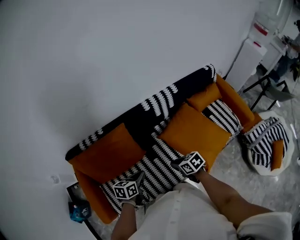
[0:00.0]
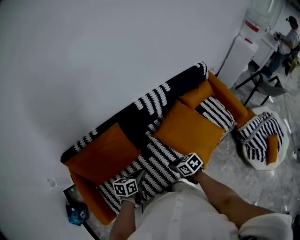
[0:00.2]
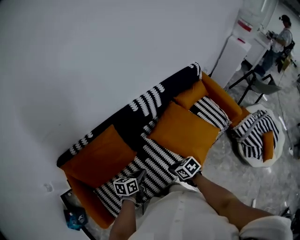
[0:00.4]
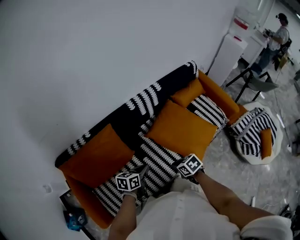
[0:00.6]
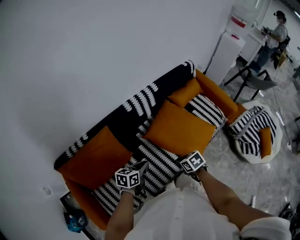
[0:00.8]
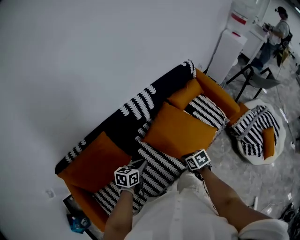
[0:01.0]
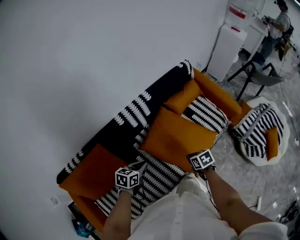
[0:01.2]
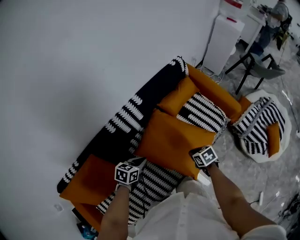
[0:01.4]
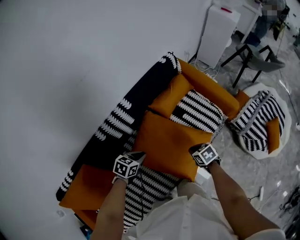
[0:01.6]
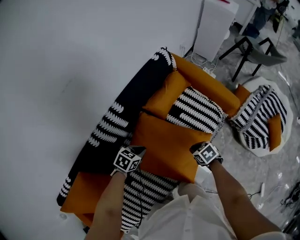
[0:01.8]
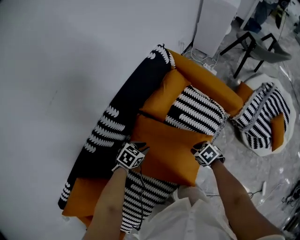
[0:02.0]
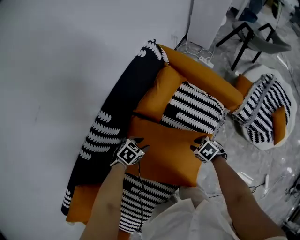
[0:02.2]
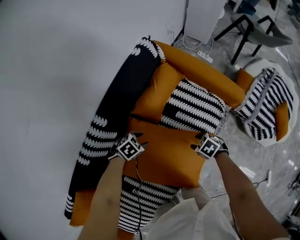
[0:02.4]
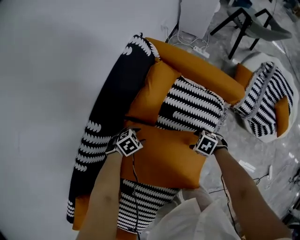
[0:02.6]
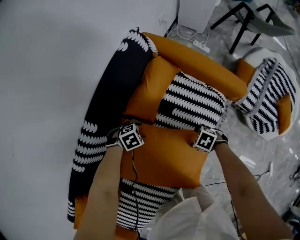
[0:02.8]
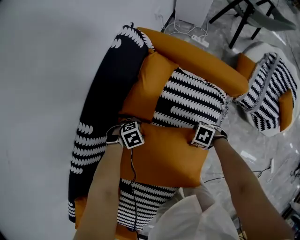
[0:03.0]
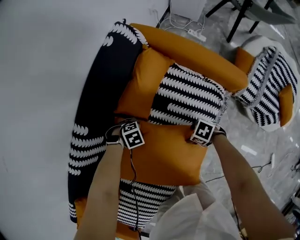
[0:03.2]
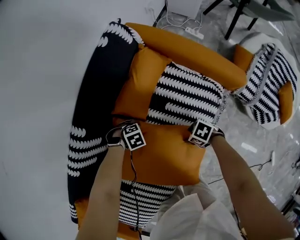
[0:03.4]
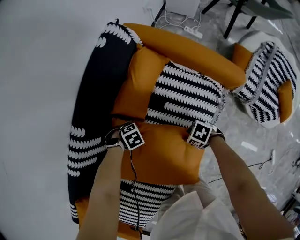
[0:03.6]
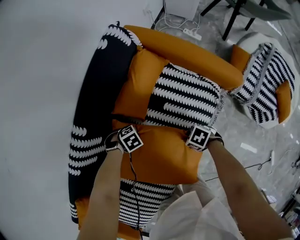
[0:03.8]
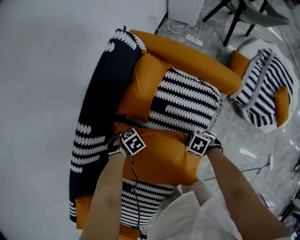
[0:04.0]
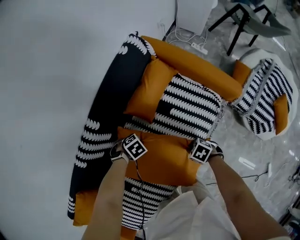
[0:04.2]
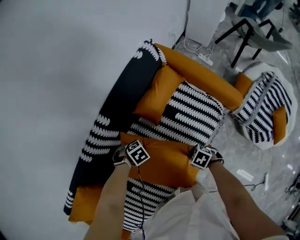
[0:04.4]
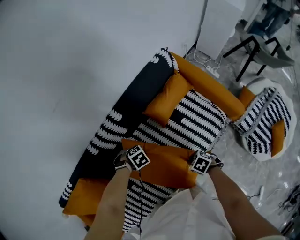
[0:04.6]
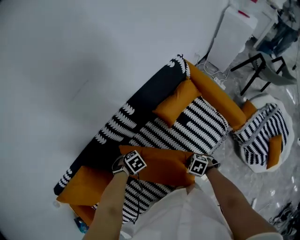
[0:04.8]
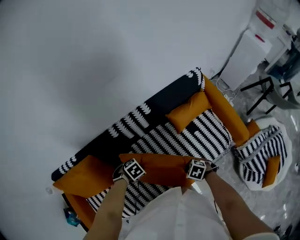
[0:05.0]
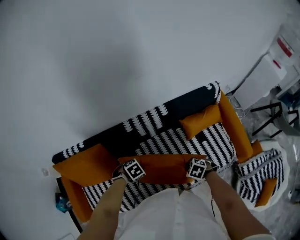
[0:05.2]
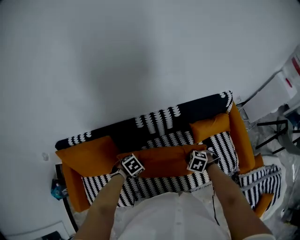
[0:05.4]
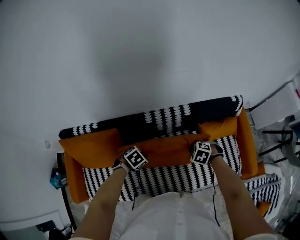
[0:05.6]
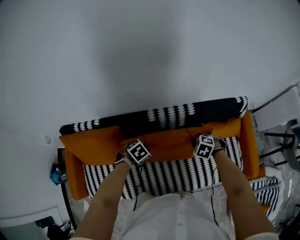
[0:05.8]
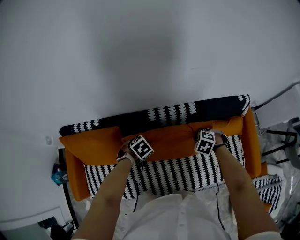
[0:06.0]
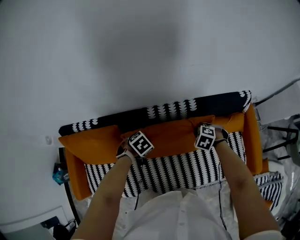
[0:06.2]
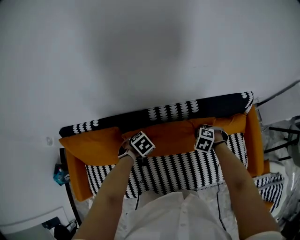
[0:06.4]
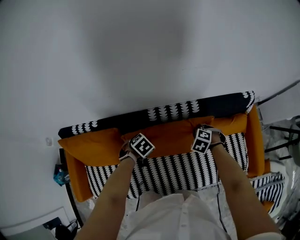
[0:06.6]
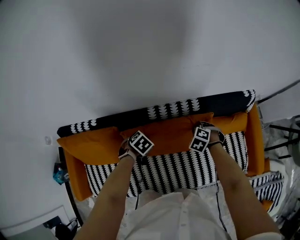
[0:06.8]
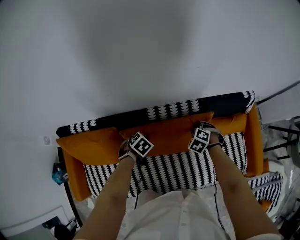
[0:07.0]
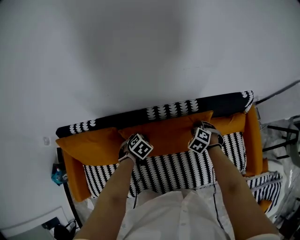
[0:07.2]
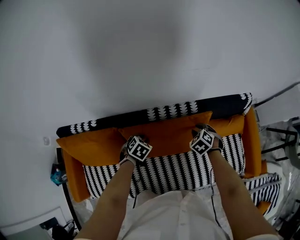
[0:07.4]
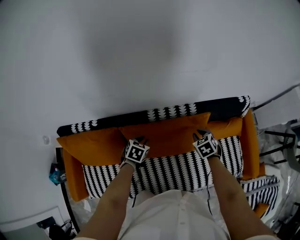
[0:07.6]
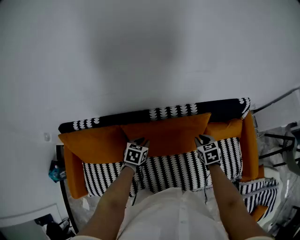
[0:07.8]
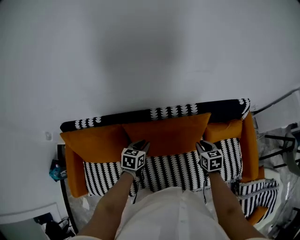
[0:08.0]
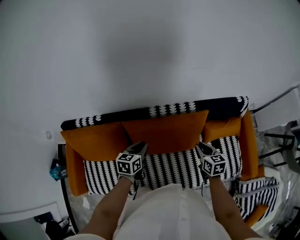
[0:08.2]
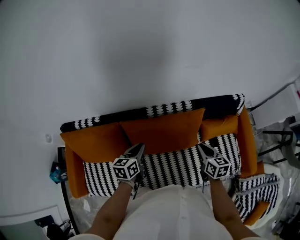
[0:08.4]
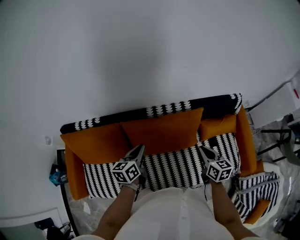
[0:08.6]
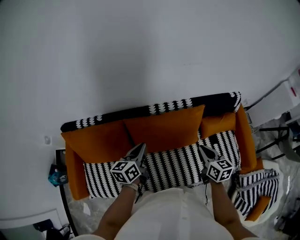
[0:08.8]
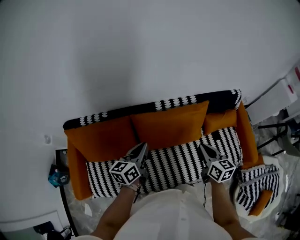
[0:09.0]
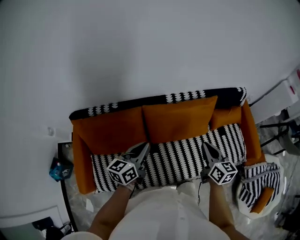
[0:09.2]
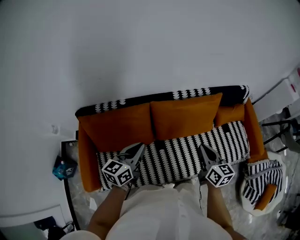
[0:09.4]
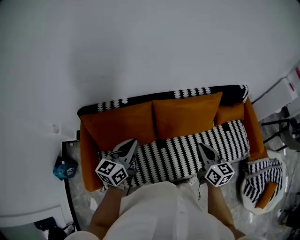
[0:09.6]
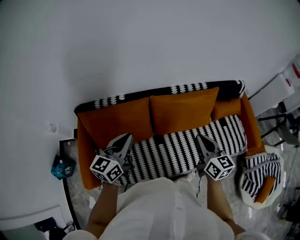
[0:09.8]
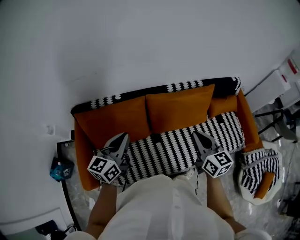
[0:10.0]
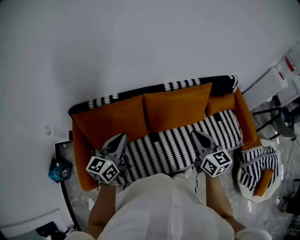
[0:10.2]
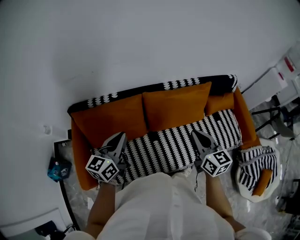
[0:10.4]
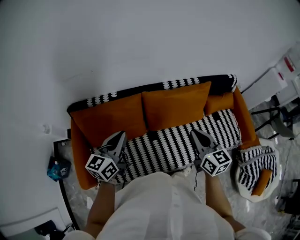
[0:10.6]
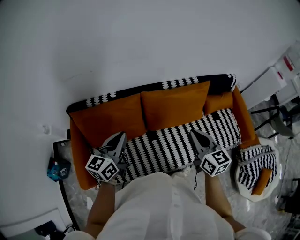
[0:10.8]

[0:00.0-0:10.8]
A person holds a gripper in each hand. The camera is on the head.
0:00.0 to 0:01.6: The right gripper shifts by approximately 35 cm, and changes its angle by some 30 degrees. Meanwhile the left gripper ends up roughly 35 cm from where it was, and changes its angle by approximately 50 degrees.
0:01.6 to 0:03.0: Both grippers travel together downward, roughly 20 cm. The right gripper swivels some 30 degrees, and opens up. Meanwhile the left gripper changes its angle by approximately 70 degrees, and opens its fingers.
0:03.0 to 0:04.6: The right gripper heads upward, covering roughly 15 cm, and closes up; the left gripper changes place by about 20 cm, changes its angle by about 30 degrees, and closes up.
0:04.6 to 0:06.2: The left gripper changes place by approximately 25 cm, and twists roughly 40 degrees counterclockwise, seen from behind, while the right gripper ends up about 35 cm from where it was, and rotates around the line of its fingers by roughly 60 degrees, counterclockwise from behind.
0:06.2 to 0:07.8: The left gripper rotates about 40 degrees; the right gripper rotates around the line of its fingers by about 50 degrees, clockwise from behind.
0:07.8 to 0:09.2: The right gripper is displaced backward, upward and to the left by roughly 30 cm, and tilts its fingers about 30 degrees upward. The left gripper moves upward, backward and to the left, roughly 30 cm, angles its fingers upward, by about 40 degrees, and closes up.
0:09.2 to 0:10.8: The grippers both shift to the left, backward and upward by some 15 cm.

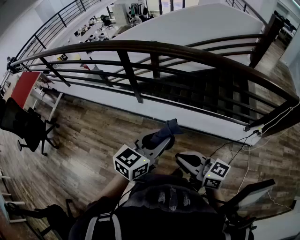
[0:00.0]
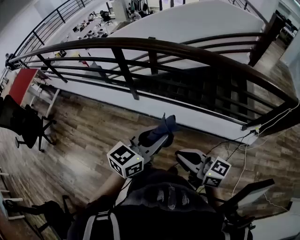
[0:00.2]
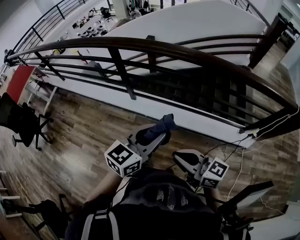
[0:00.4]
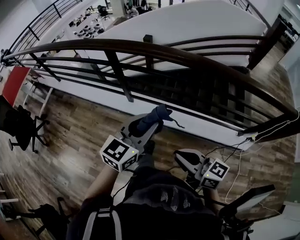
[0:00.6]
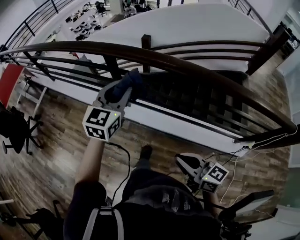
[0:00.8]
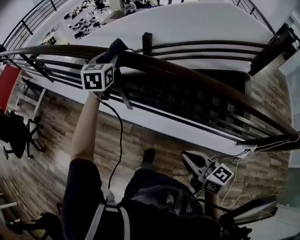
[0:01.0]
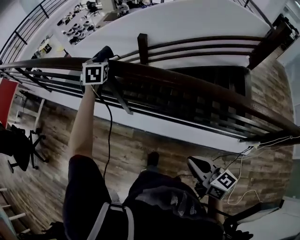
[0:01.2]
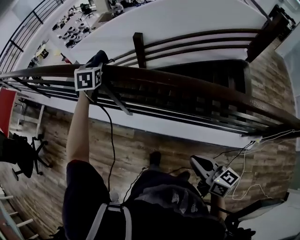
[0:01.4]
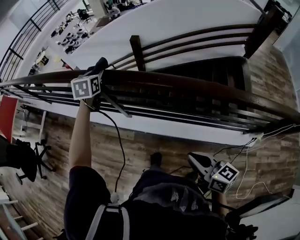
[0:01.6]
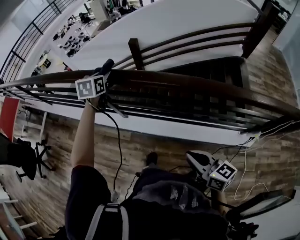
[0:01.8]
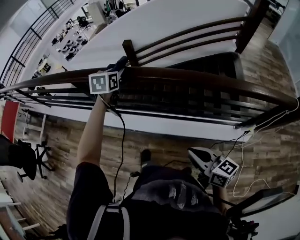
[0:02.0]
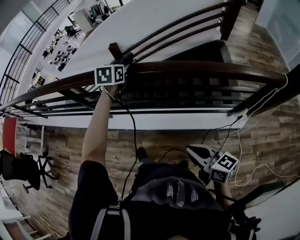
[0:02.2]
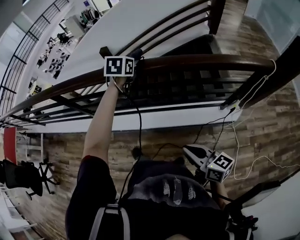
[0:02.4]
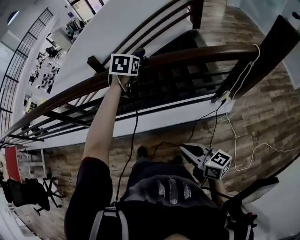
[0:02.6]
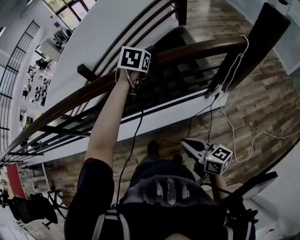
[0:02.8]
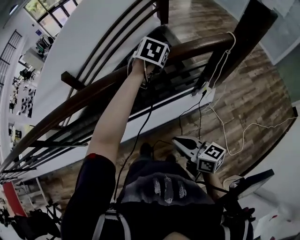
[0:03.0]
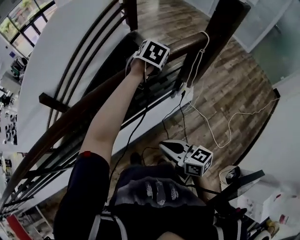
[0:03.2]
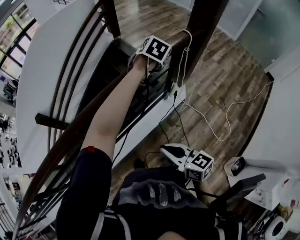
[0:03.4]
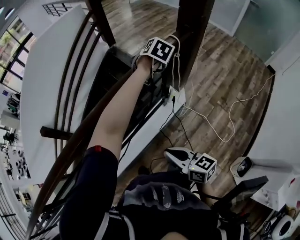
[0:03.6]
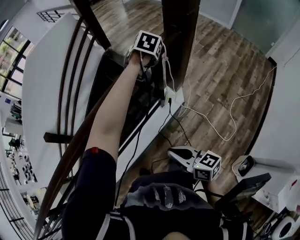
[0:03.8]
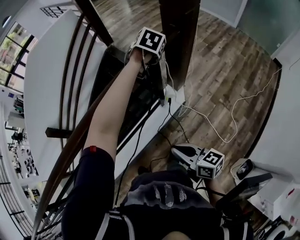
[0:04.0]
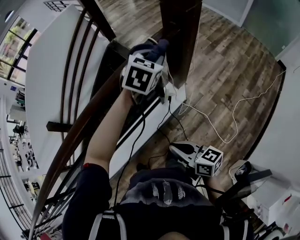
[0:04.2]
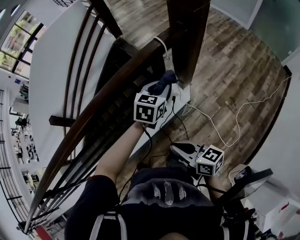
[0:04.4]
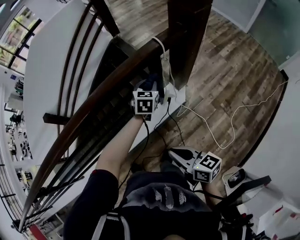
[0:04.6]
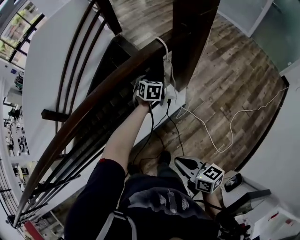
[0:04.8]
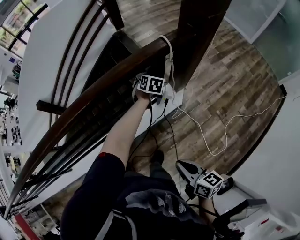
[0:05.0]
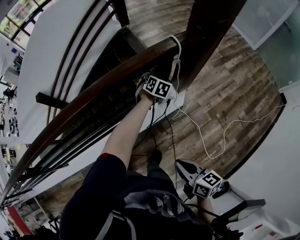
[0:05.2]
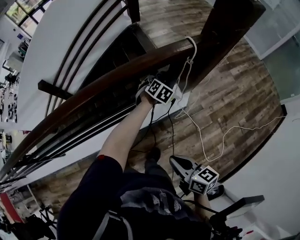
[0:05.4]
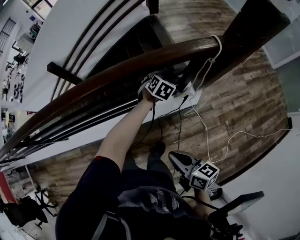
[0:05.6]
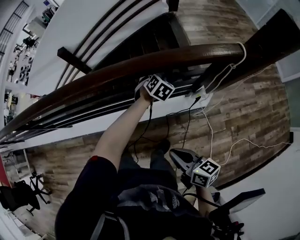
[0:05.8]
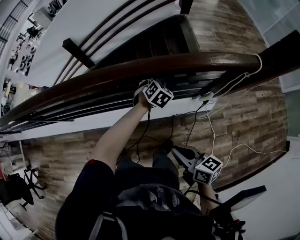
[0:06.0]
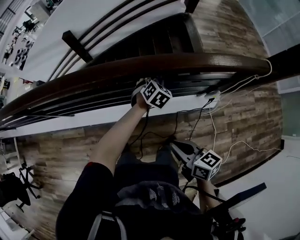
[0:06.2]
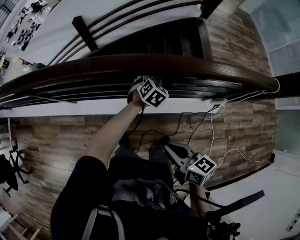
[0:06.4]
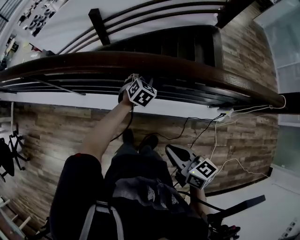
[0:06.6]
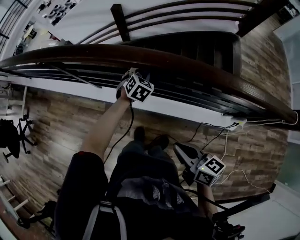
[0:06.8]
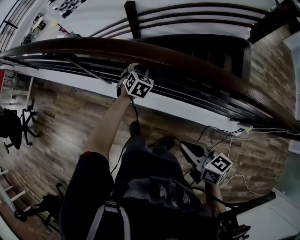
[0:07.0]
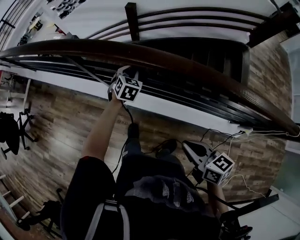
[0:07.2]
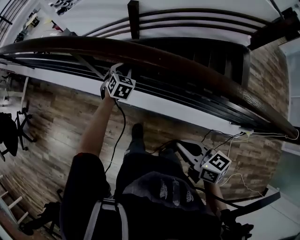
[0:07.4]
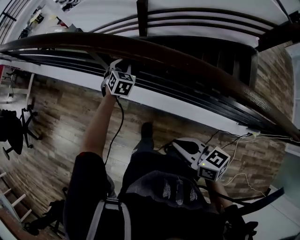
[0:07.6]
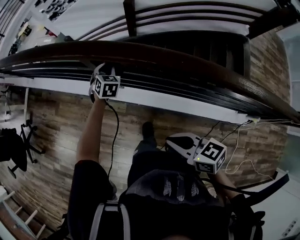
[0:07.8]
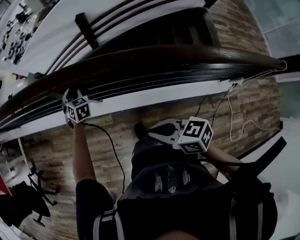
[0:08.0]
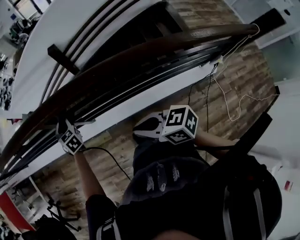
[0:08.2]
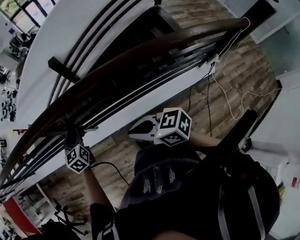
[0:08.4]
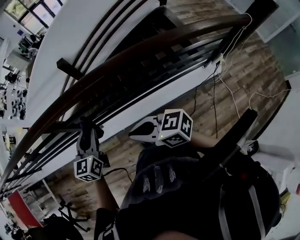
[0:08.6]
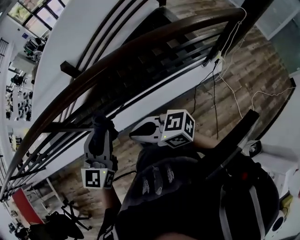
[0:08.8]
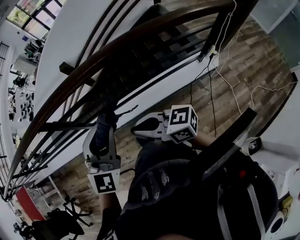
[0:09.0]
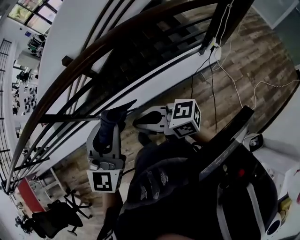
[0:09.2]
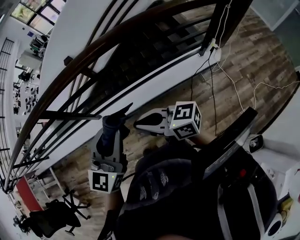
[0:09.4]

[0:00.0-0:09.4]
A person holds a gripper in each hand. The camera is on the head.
0:00.0 to 0:01.6: The right gripper goes roughly 30 cm forward and to the right. The left gripper shifts approximately 60 cm forward, and swivels some 40 degrees.
0:01.6 to 0:03.2: Both grippers are carried about 70 cm. The right gripper swivels about 30 degrees. Meanwhile the left gripper changes its angle by approximately 70 degrees.
0:03.2 to 0:04.8: The right gripper travels to the right by roughly 30 cm. Meanwhile the left gripper goes about 30 cm to the right and downward.
0:04.8 to 0:06.2: Both grippers travel together to the left, approximately 40 cm. The right gripper rotates about 30 degrees.
0:06.2 to 0:07.8: Both grippers are carried some 70 cm. The right gripper swivels some 40 degrees, while the left gripper swivels about 40 degrees.
0:07.8 to 0:09.4: The left gripper changes place by roughly 70 cm, and angles its fingers upward, by some 40 degrees. Meanwhile the right gripper ends up about 30 cm from where it was, and rotates approximately 30 degrees.

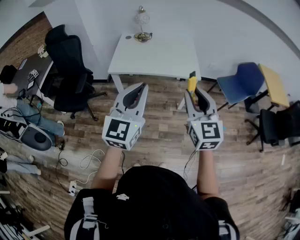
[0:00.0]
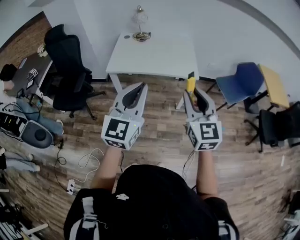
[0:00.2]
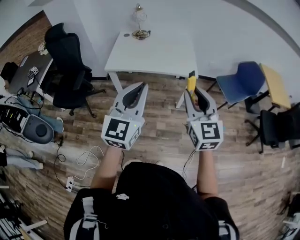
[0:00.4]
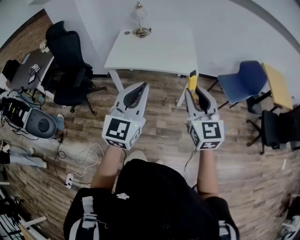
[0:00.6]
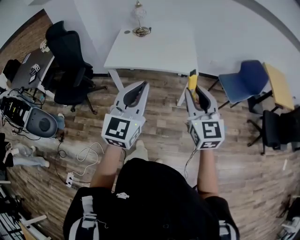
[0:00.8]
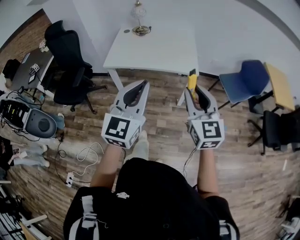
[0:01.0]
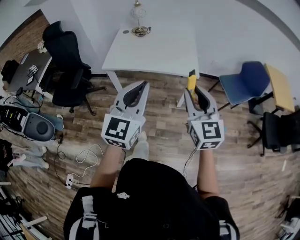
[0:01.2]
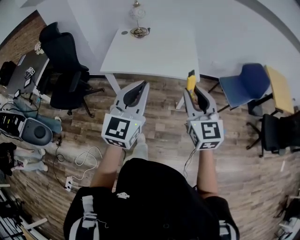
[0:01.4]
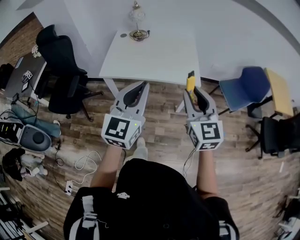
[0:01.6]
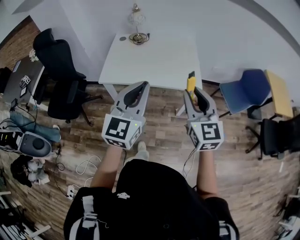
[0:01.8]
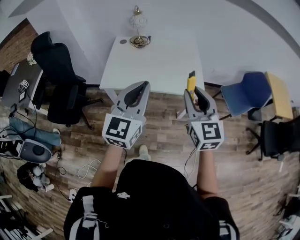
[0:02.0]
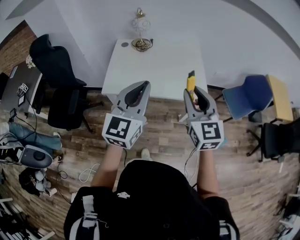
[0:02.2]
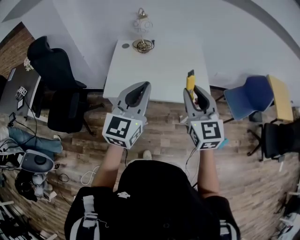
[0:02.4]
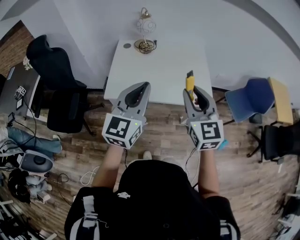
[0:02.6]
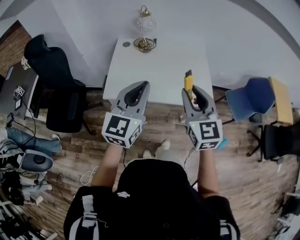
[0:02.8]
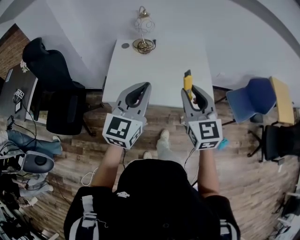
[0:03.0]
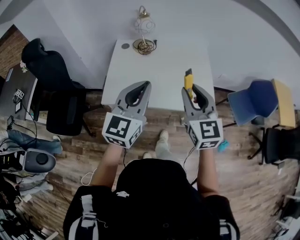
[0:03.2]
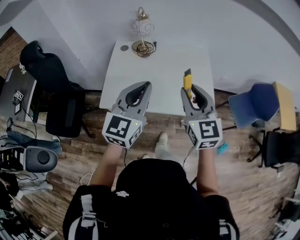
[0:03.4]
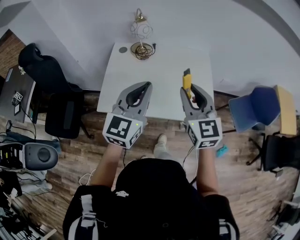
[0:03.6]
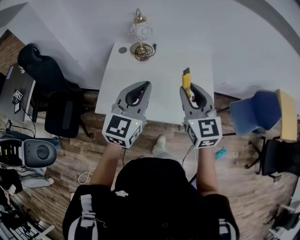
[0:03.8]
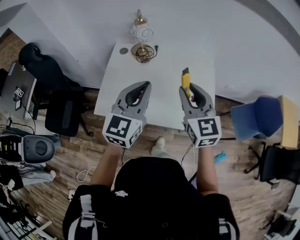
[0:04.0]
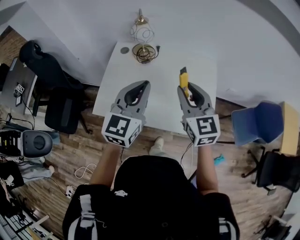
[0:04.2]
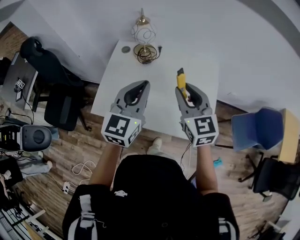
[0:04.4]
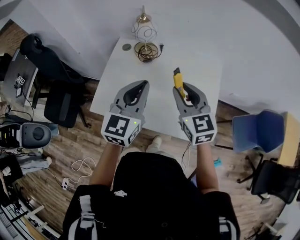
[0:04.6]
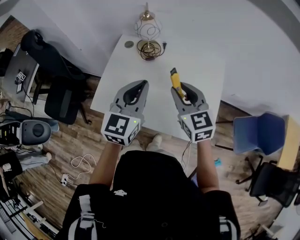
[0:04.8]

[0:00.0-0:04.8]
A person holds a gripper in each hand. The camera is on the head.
0:00.0 to 0:01.6: The two grippers go roughly 15 cm forward.
0:01.6 to 0:03.2: The grippers both shift forward and to the left by about 25 cm.
0:03.2 to 0:04.8: Both grippers travel together forward, approximately 20 cm. The right gripper changes its angle by roughly 20 degrees.
